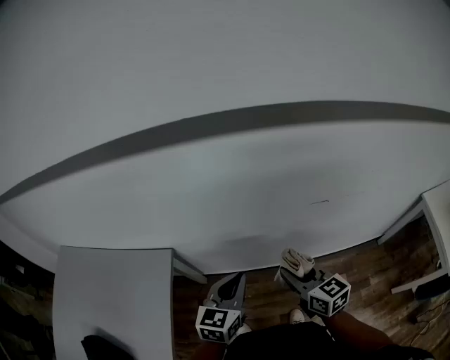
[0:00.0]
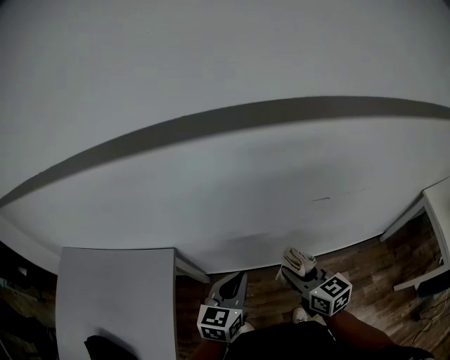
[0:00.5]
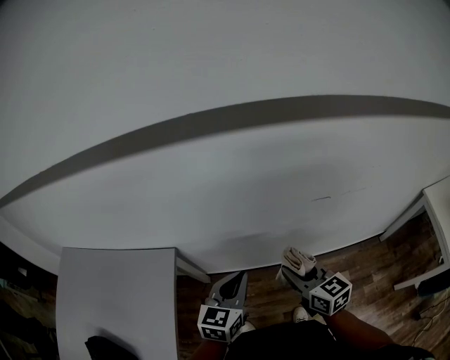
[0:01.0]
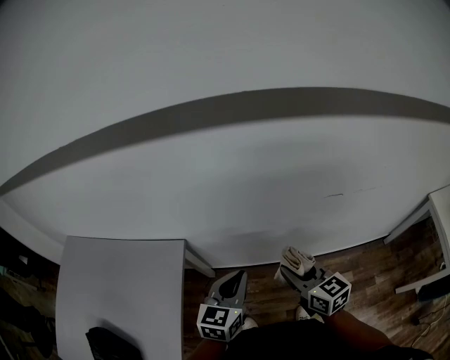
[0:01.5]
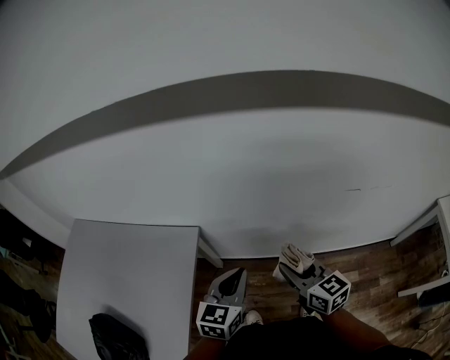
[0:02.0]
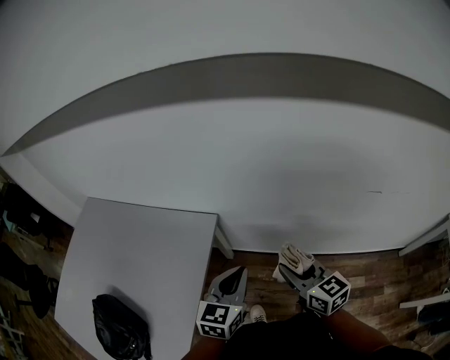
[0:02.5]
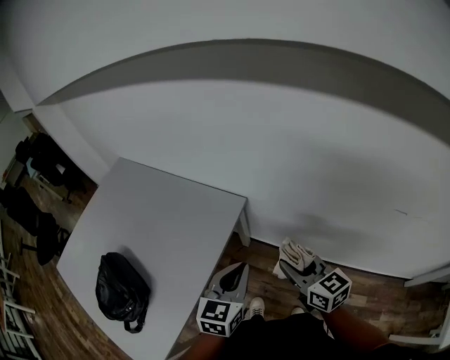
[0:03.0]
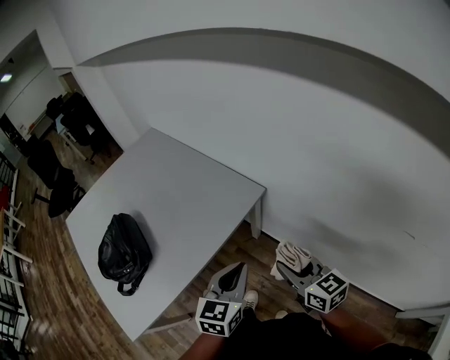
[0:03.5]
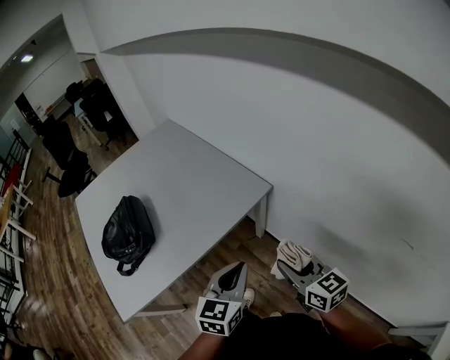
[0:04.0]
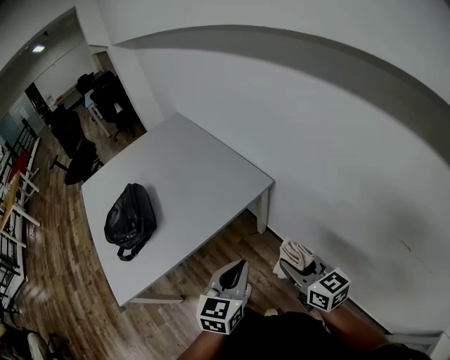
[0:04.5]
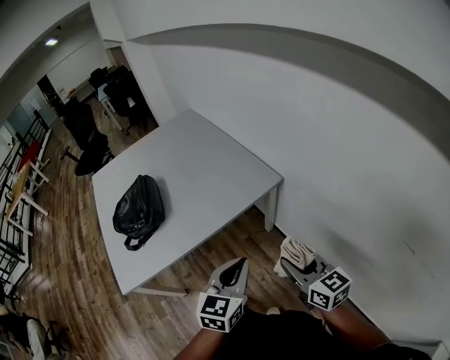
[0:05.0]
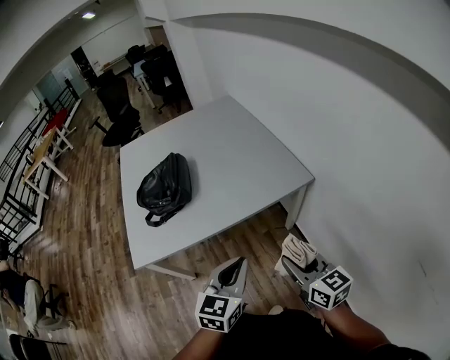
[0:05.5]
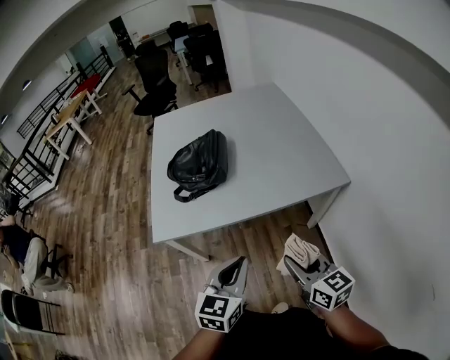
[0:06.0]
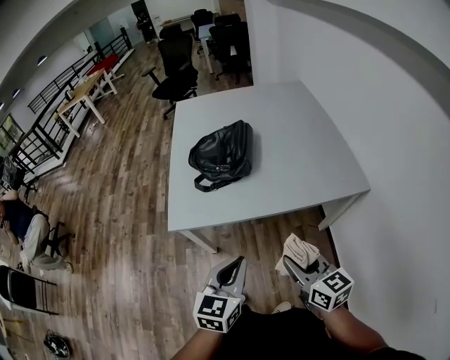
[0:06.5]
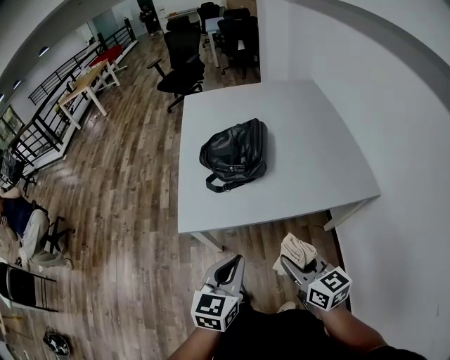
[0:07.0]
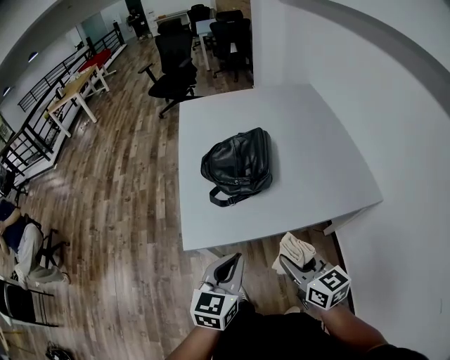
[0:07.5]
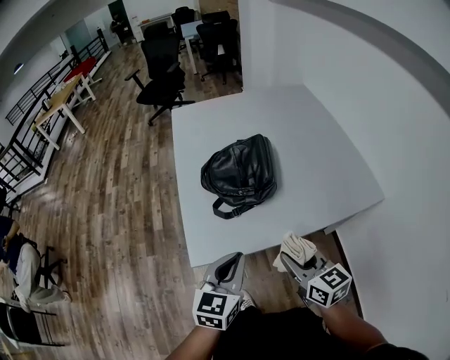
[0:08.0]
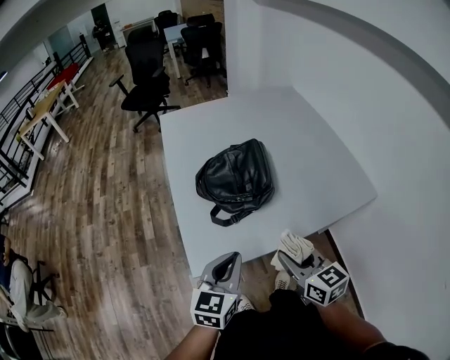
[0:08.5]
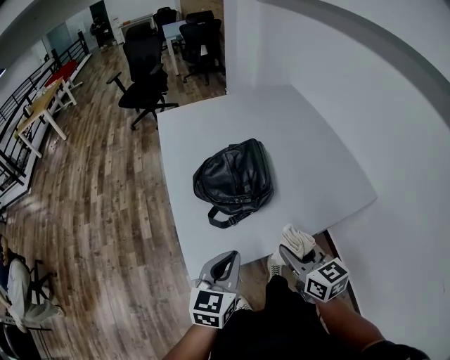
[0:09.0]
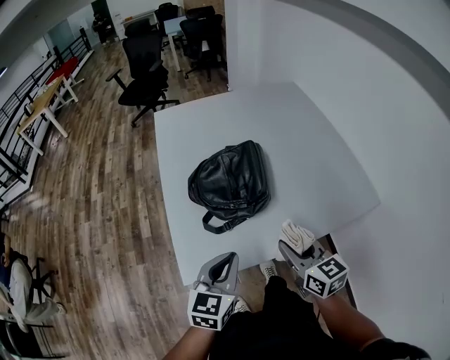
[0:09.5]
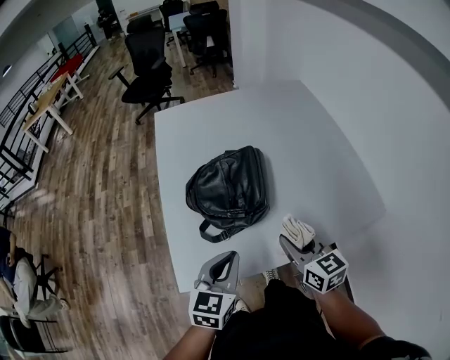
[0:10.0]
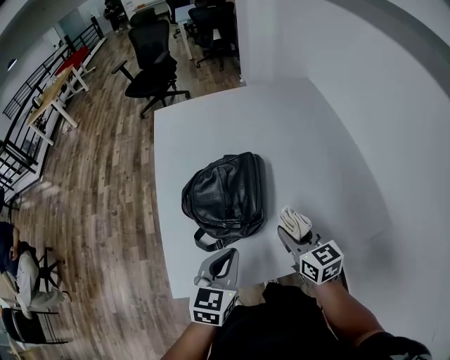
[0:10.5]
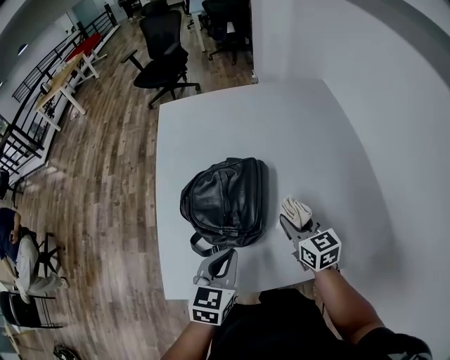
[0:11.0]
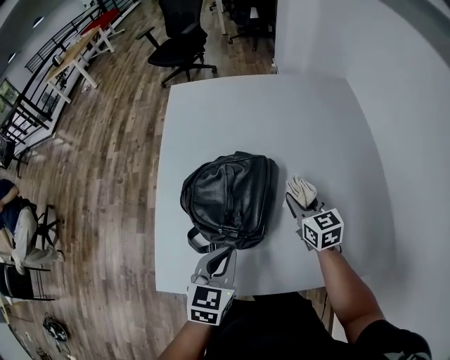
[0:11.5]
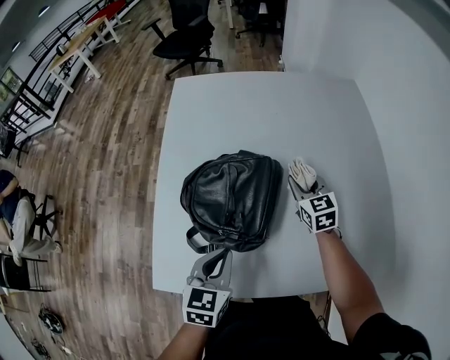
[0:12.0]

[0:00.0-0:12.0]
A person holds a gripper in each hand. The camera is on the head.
0:00.0 to 0:02.0: Both grippers move to the left, approximately 10 cm.
0:02.0 to 0:04.0: The right gripper changes place by roughly 10 cm, and turns by some 40 degrees. The left gripper moves some 15 cm, and swivels some 40 degrees.
0:04.0 to 0:06.0: The right gripper shifts by some 15 cm, and turns by about 30 degrees. Meanwhile the left gripper changes place by some 20 cm, and turns by approximately 30 degrees.
0:06.0 to 0:08.0: The grippers both shift to the left and forward by roughly 30 cm.
0:08.0 to 0:10.0: Both grippers move forward, approximately 15 cm.
0:10.0 to 0:12.0: The right gripper goes about 30 cm forward, and turns by some 20 degrees; the left gripper is displaced forward and downward by approximately 15 cm, and changes its angle by about 20 degrees.

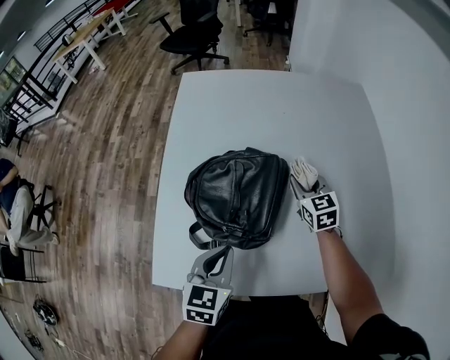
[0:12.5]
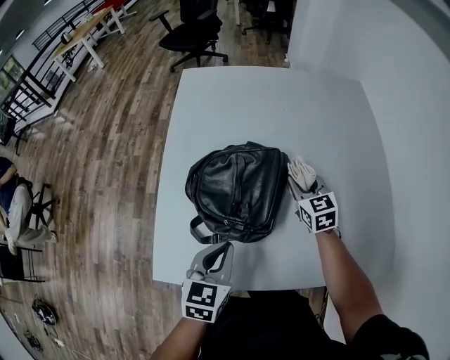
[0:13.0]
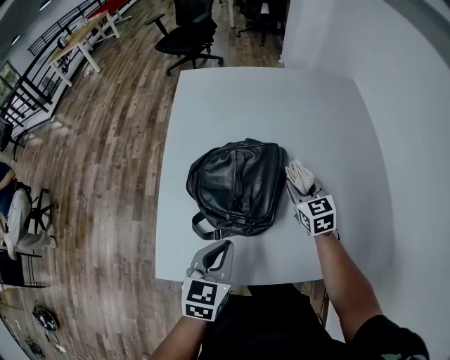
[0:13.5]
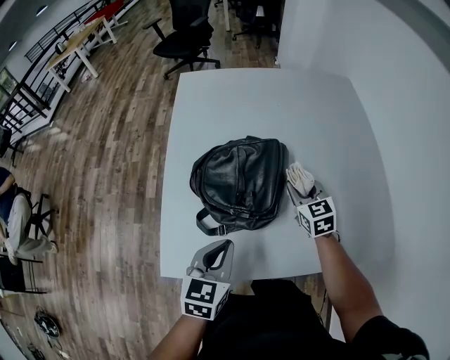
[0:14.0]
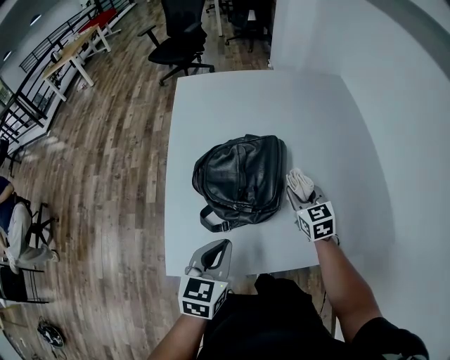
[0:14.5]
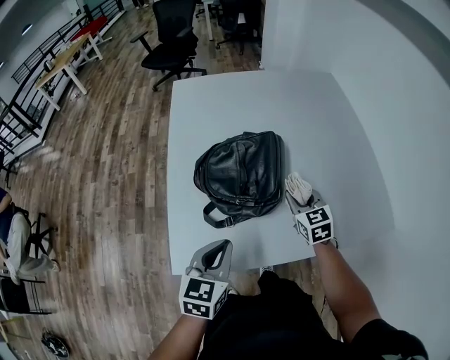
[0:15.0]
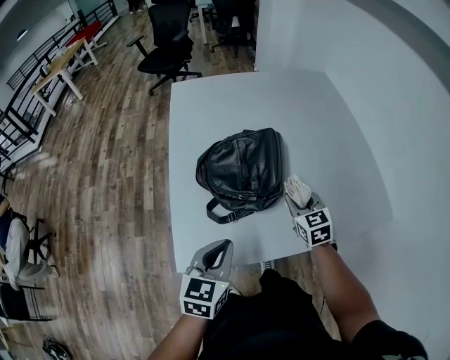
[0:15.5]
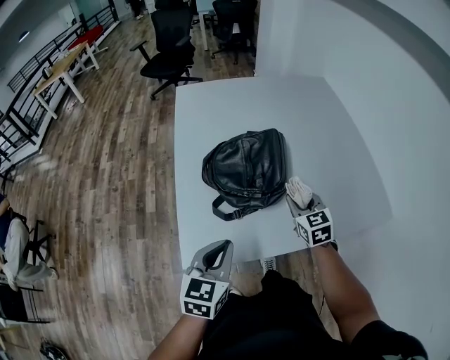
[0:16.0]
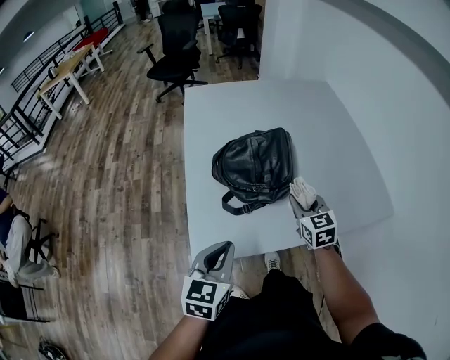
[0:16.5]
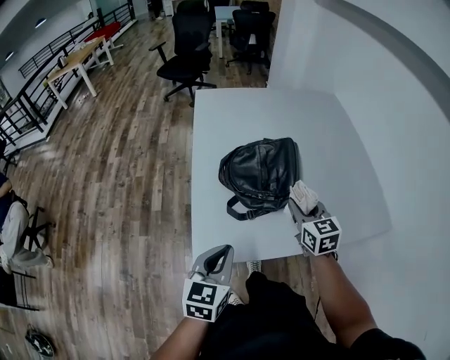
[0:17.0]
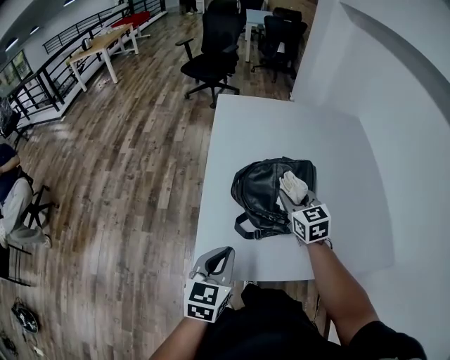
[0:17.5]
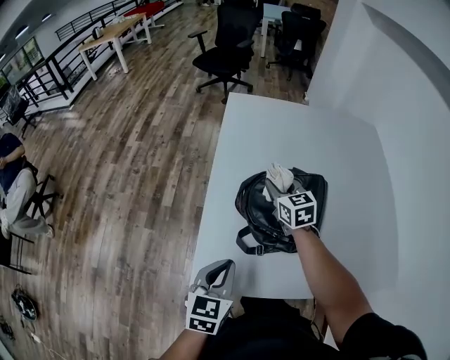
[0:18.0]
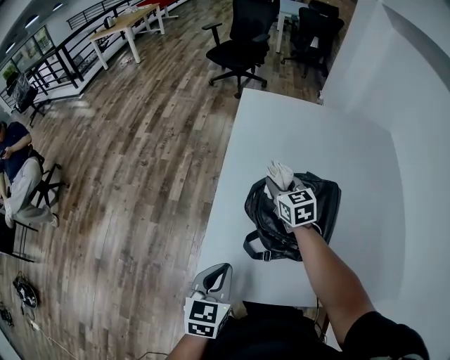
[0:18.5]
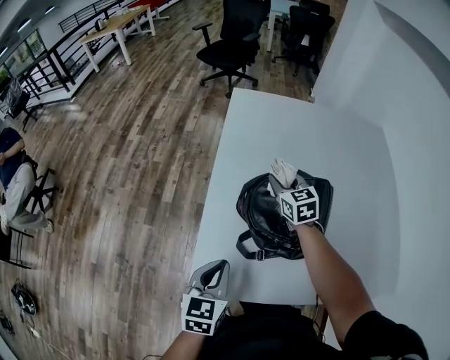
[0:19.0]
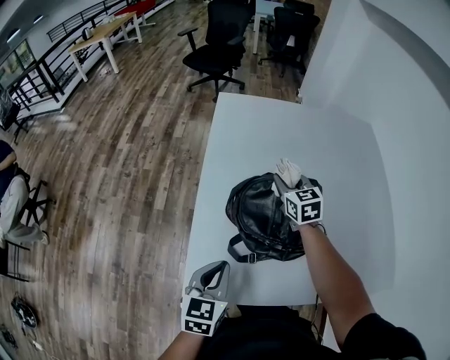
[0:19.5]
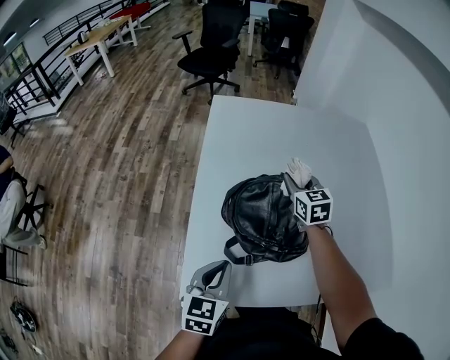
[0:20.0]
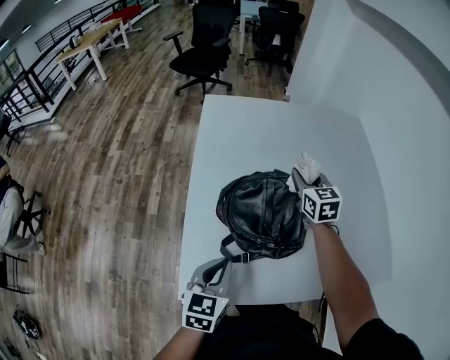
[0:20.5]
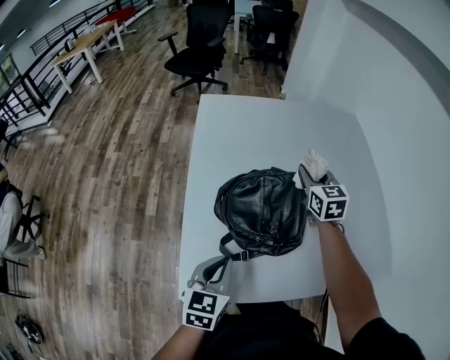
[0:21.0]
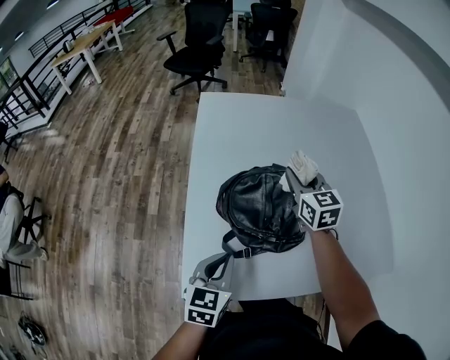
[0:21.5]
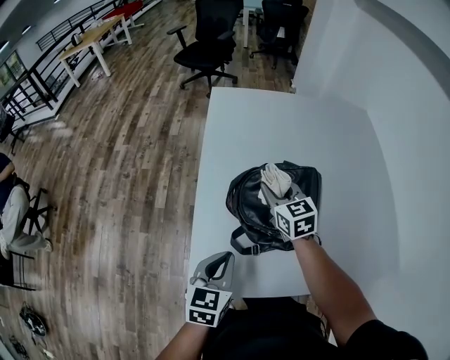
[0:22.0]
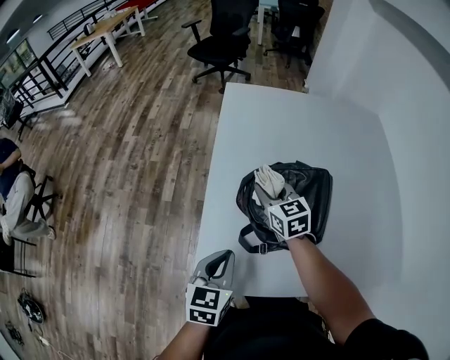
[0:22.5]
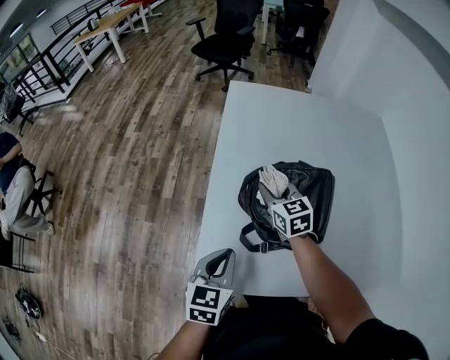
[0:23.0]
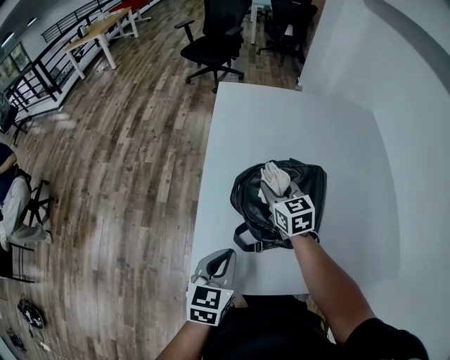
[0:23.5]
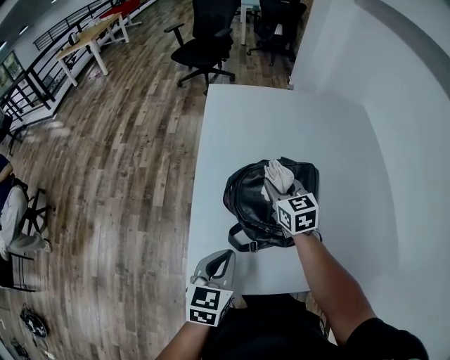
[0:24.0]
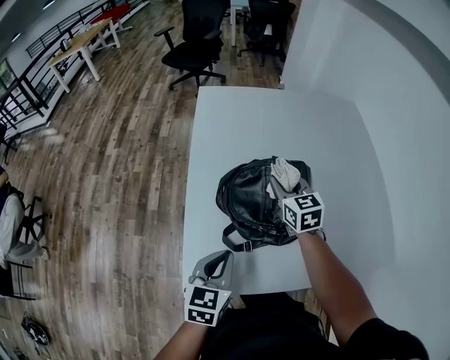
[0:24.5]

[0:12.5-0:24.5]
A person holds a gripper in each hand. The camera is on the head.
0:12.5 to 0:14.5: The left gripper heads backward, covering approximately 5 cm, while the right gripper goes roughly 15 cm backward.
0:14.5 to 0:16.5: Both grippers travel together backward and to the left, some 15 cm.
0:16.5 to 0:18.5: The left gripper is displaced forward, downward and to the left by some 10 cm, and swivels approximately 20 degrees, while the right gripper travels forward and to the left by some 30 cm, and changes its angle by roughly 20 degrees.
0:18.5 to 0:20.5: The left gripper heads to the right, covering roughly 5 cm. Meanwhile the right gripper goes about 20 cm to the right.
0:20.5 to 0:22.5: The left gripper ends up some 5 cm from where it was, while the right gripper travels to the left and backward by approximately 20 cm.
0:22.5 to 0:24.5: The right gripper moves to the right, roughly 10 cm.

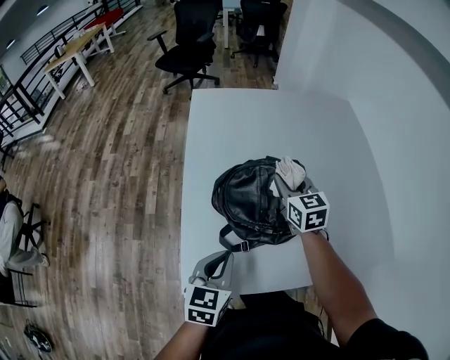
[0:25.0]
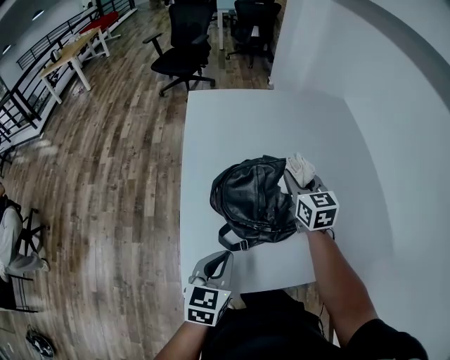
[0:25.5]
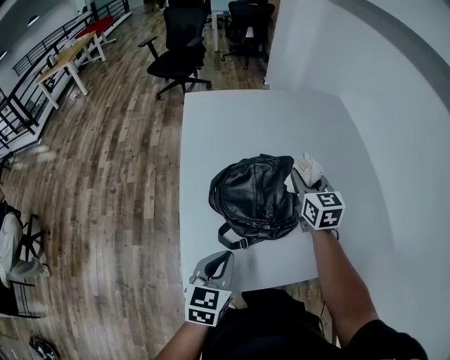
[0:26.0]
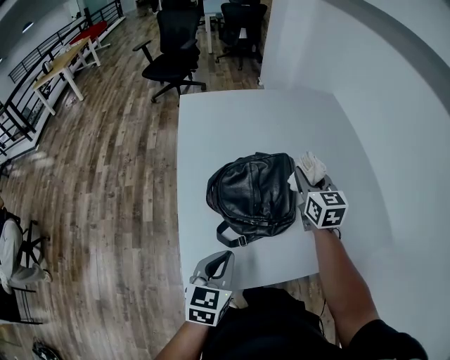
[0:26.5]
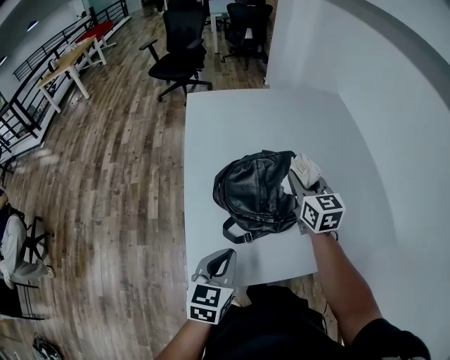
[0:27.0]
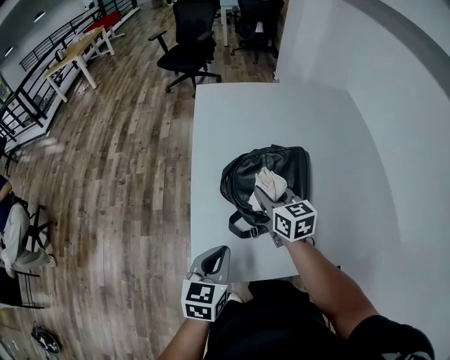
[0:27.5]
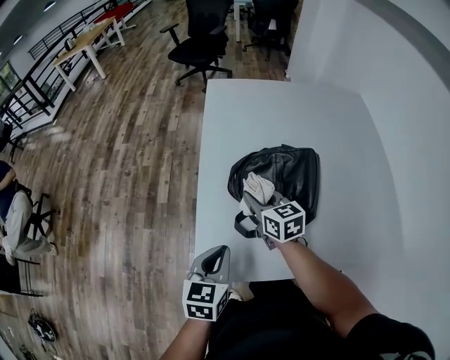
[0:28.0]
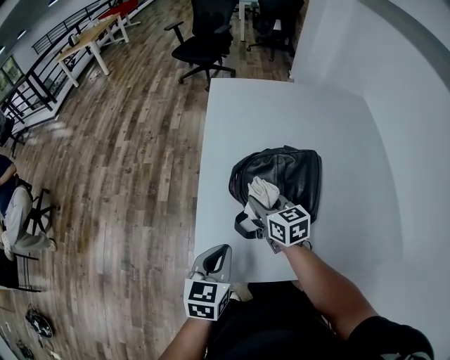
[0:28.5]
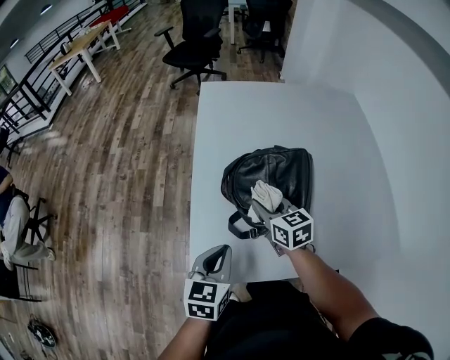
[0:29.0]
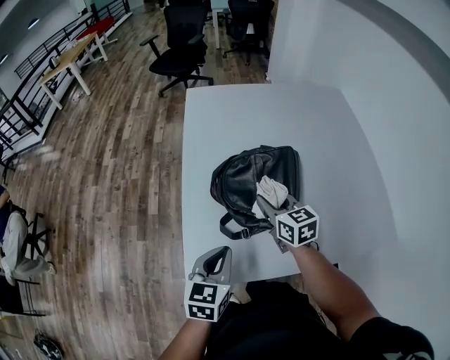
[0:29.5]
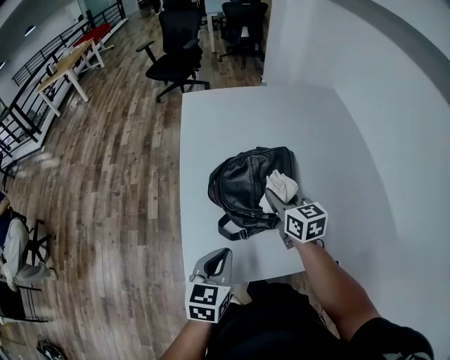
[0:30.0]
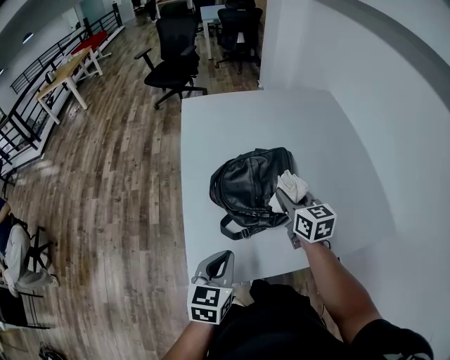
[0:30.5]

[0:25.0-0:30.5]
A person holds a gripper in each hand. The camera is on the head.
0:25.0 to 0:27.0: The right gripper changes place by roughly 10 cm.
0:27.0 to 0:28.5: The right gripper shifts about 20 cm to the left and downward, and changes its angle by some 30 degrees, while the left gripper changes place by approximately 5 cm.
0:28.5 to 0:30.5: The right gripper is displaced to the right and upward by roughly 15 cm, and swivels some 20 degrees. Meanwhile the left gripper shifts by roughly 5 cm.
